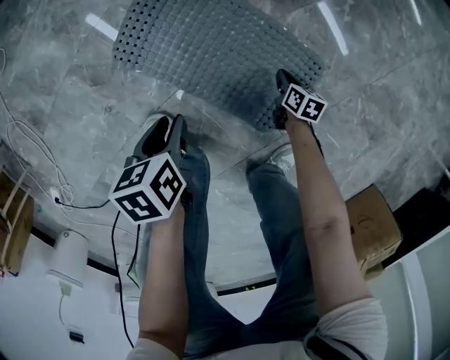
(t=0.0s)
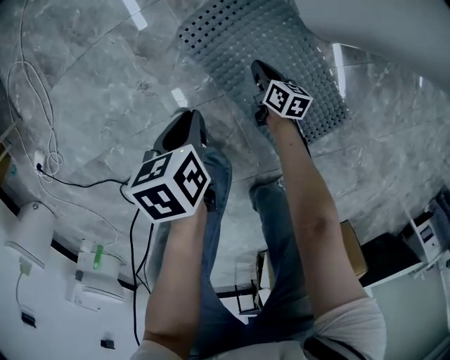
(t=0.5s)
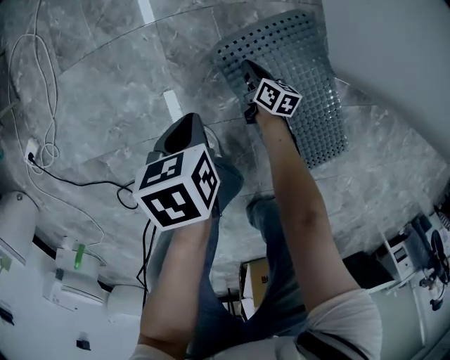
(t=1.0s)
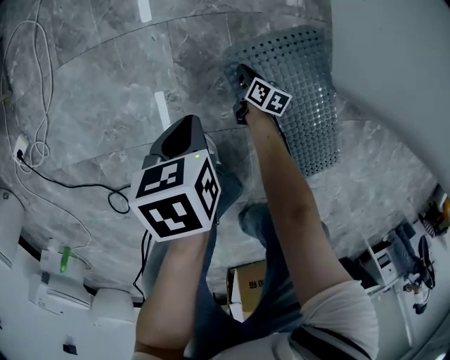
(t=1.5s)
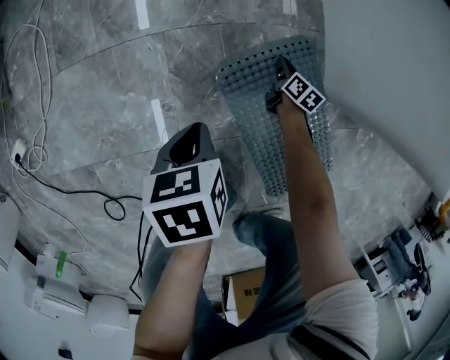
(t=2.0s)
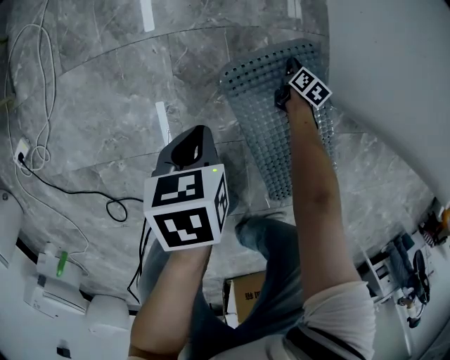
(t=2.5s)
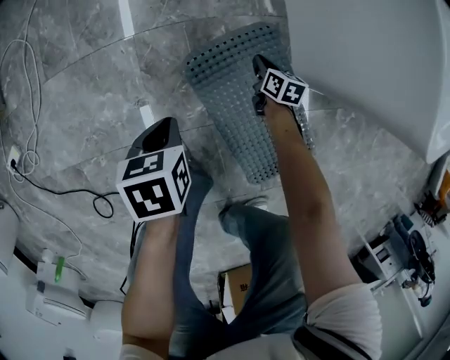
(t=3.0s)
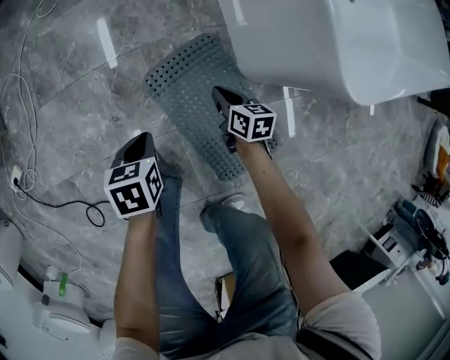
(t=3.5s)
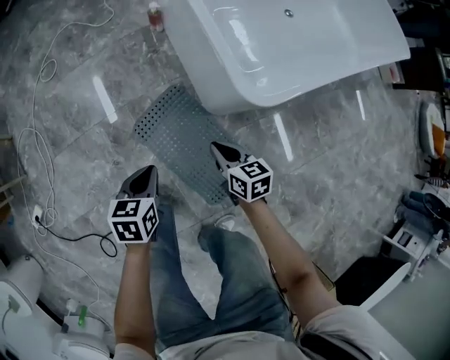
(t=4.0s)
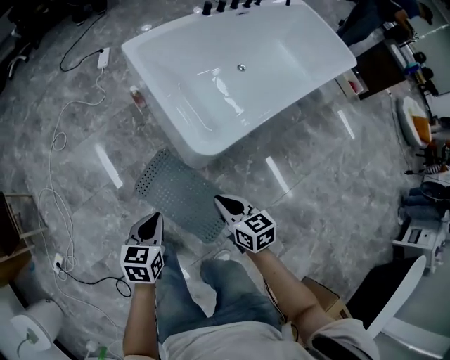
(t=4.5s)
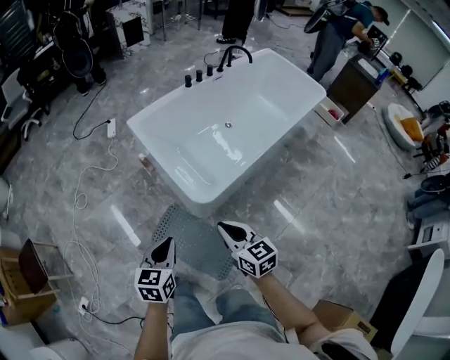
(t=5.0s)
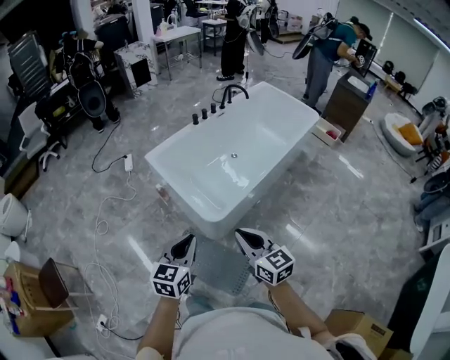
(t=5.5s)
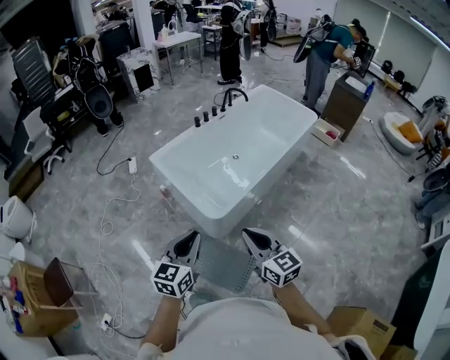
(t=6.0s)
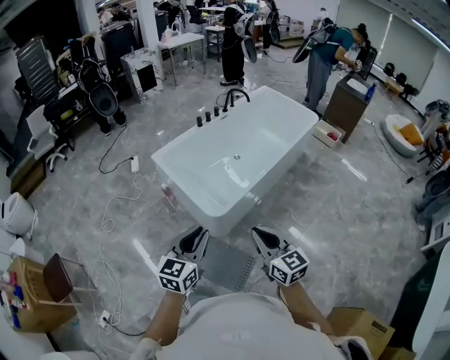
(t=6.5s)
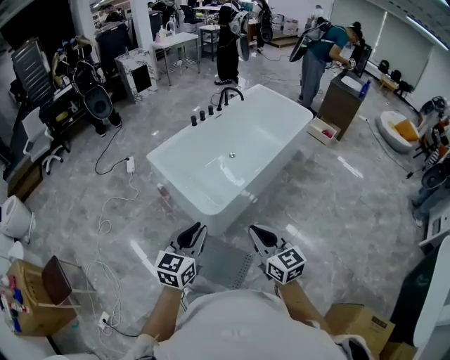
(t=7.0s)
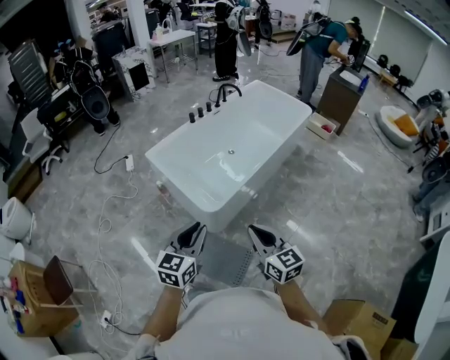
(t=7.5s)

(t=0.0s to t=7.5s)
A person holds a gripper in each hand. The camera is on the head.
t=0.0s - t=2.0s: The right gripper moves about 50 cm, and rotates about 20 degrees. Meanwhile the left gripper moves some 30 cm, swivels approximately 20 degrees, and closes.
t=2.0s - t=4.0s: The right gripper shifts about 50 cm upward, and changes its angle by about 20 degrees, while the left gripper heads upward and to the right, covering approximately 35 cm, and turns by roughly 30 degrees.
t=4.0s - t=5.5s: The grippers both shift upward by approximately 60 cm. The right gripper swivels some 30 degrees, while the left gripper points its fingers roughly 30 degrees further upward.
t=5.5s - t=7.5s: The left gripper heads backward, upward and to the right, covering some 10 cm. Meanwhile the right gripper travels backward and to the right by roughly 10 cm.

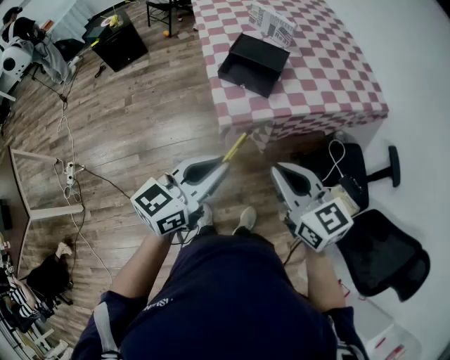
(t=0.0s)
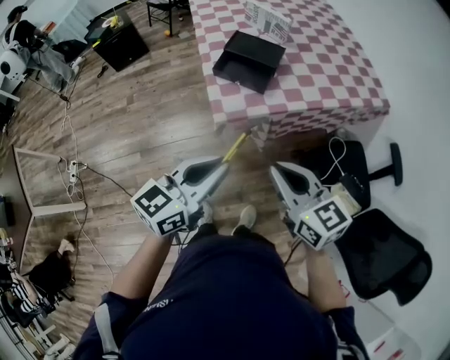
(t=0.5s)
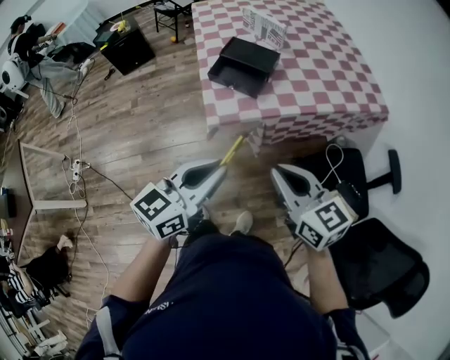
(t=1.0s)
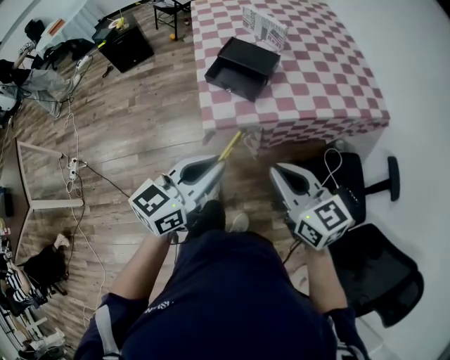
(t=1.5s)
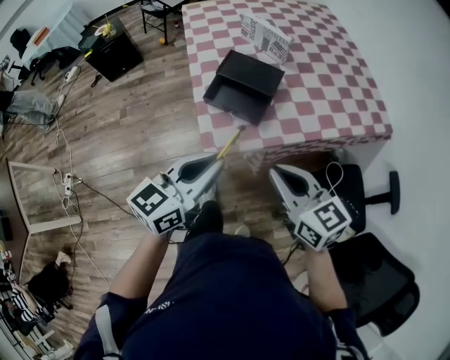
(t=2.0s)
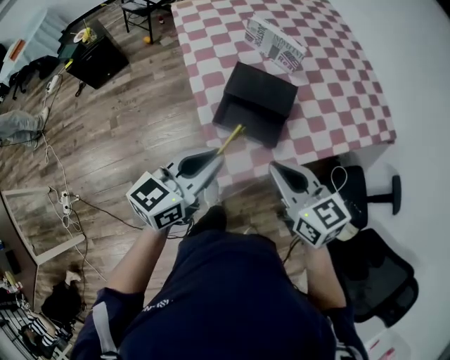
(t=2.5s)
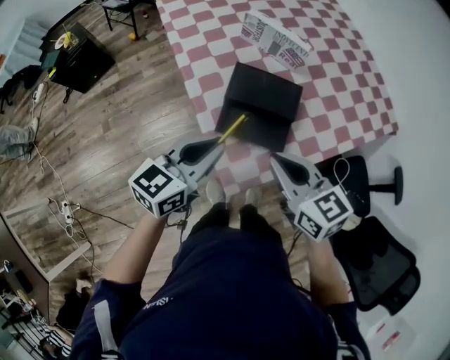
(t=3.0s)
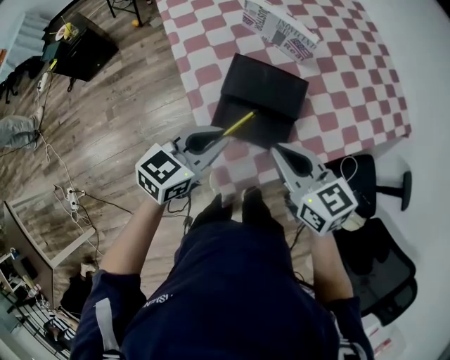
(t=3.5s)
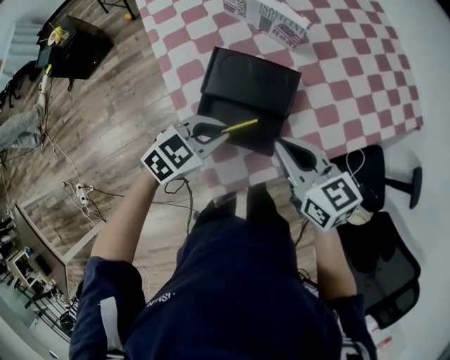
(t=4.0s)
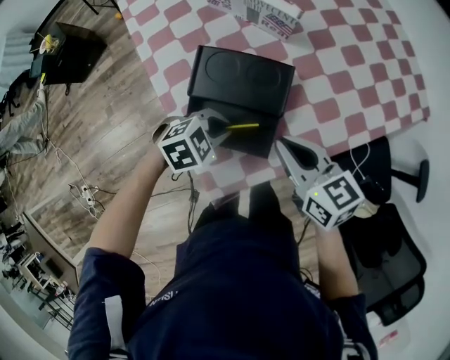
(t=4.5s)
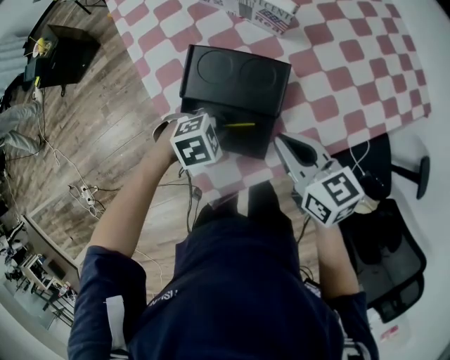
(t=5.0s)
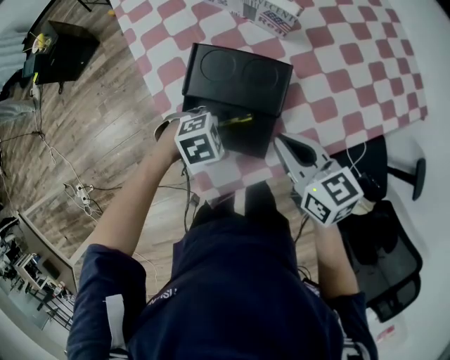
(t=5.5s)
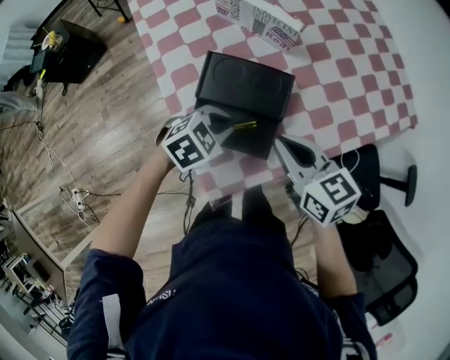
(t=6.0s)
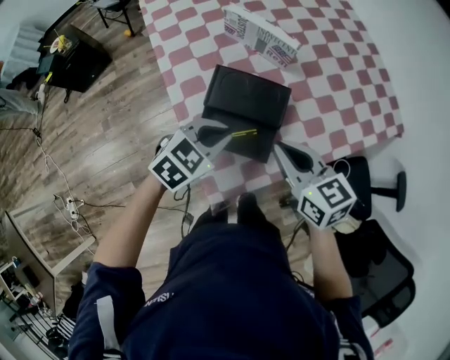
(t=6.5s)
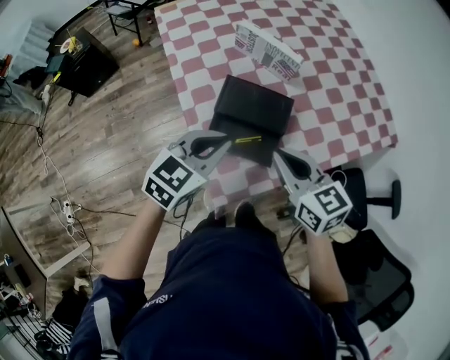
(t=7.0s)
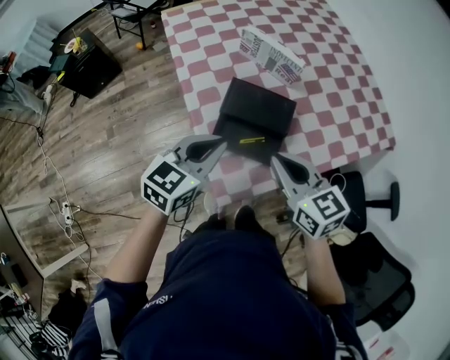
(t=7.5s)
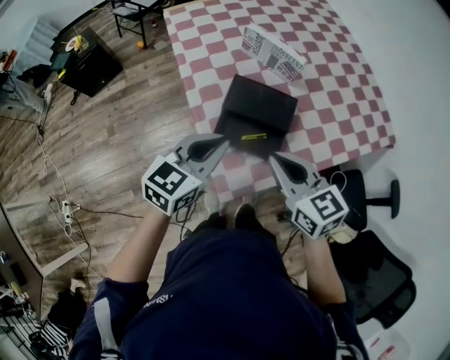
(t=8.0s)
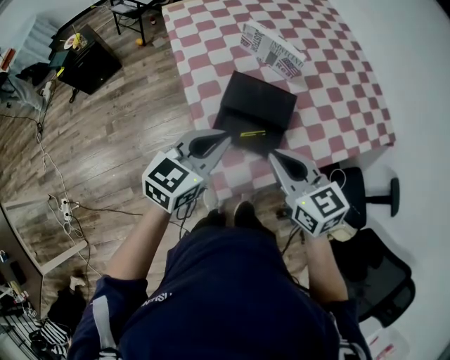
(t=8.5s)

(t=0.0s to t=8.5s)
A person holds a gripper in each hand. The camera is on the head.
t=0.0s - t=2.0s: The two grippers go approximately 15 cm forward.
t=2.0s - t=4.0s: The right gripper is displaced forward by some 25 cm, while the left gripper is displaced forward and downward by some 35 cm, and tilts its fingers some 30 degrees downward.
t=4.0s - t=6.5s: The left gripper goes downward and returns, about 10 cm each way.
t=6.5s - t=8.5s: The right gripper travels backward and to the left by some 10 cm. Meanwhile the left gripper goes roughly 10 cm upward, to the left and backward, and turns by some 30 degrees.

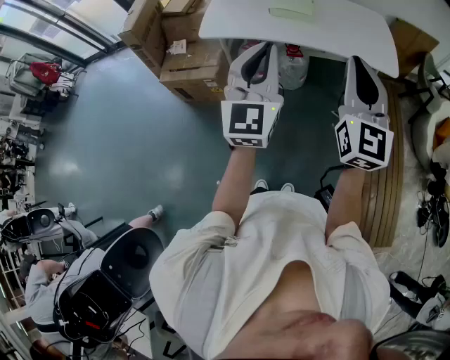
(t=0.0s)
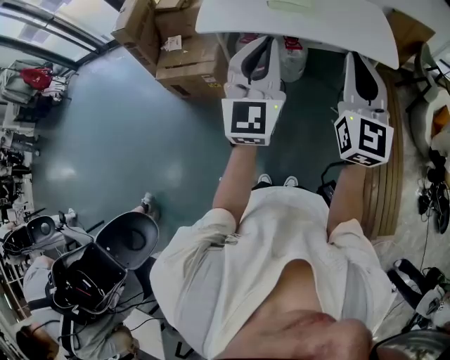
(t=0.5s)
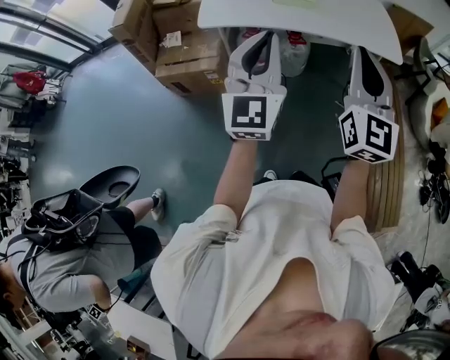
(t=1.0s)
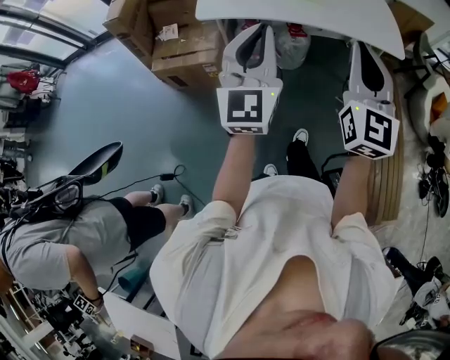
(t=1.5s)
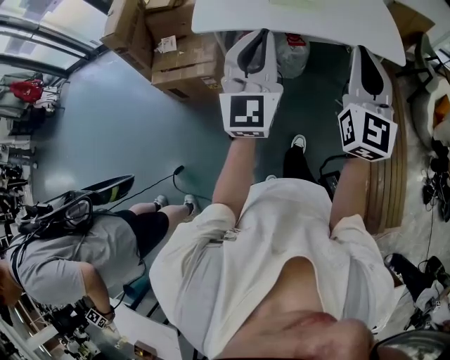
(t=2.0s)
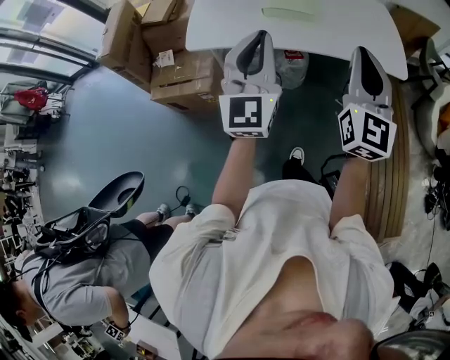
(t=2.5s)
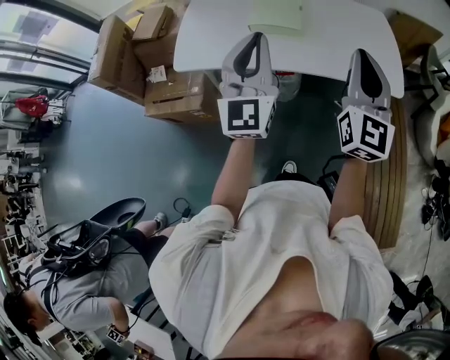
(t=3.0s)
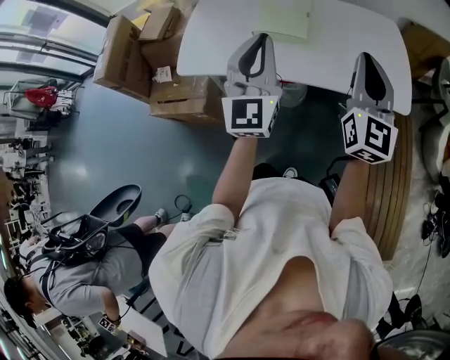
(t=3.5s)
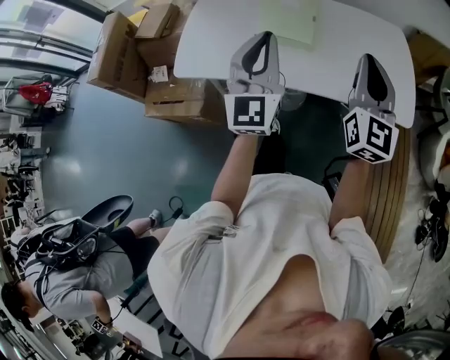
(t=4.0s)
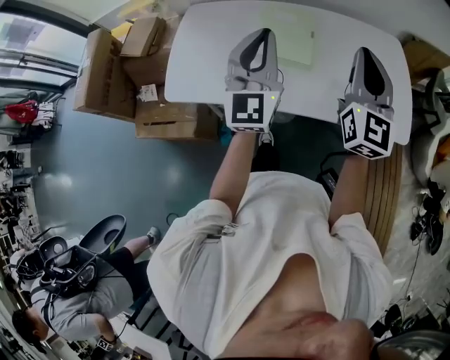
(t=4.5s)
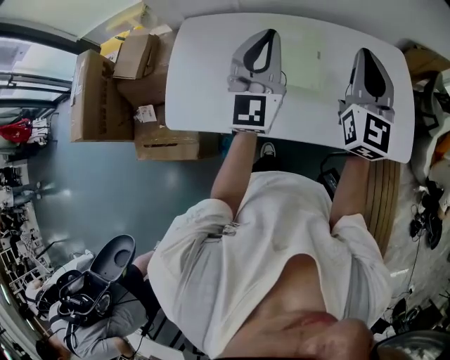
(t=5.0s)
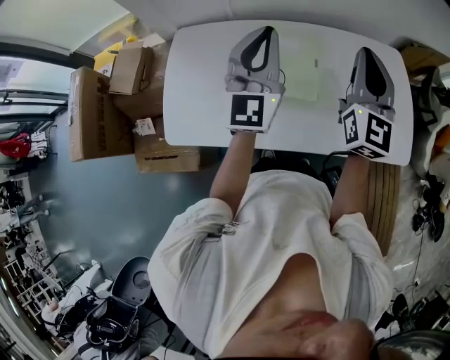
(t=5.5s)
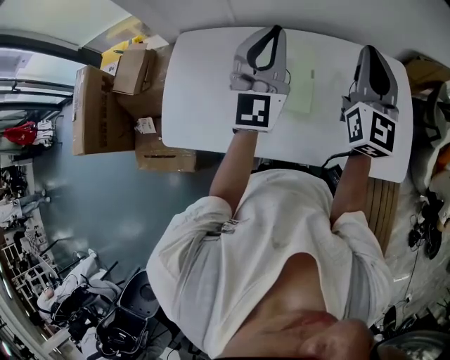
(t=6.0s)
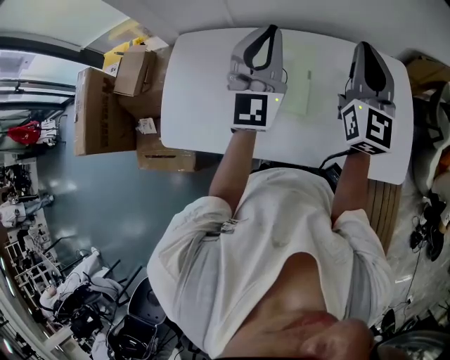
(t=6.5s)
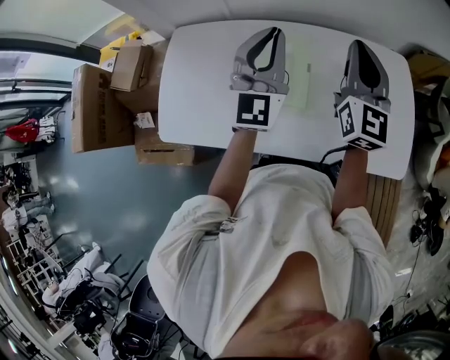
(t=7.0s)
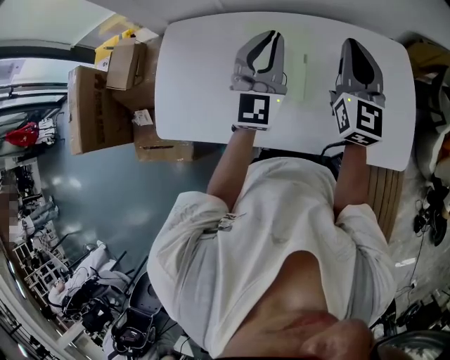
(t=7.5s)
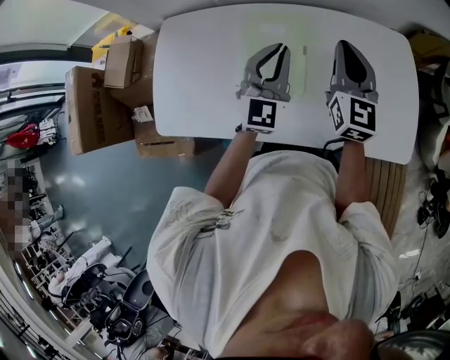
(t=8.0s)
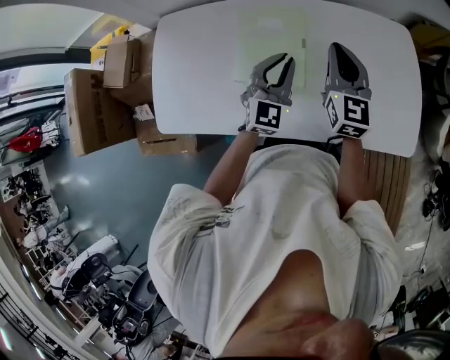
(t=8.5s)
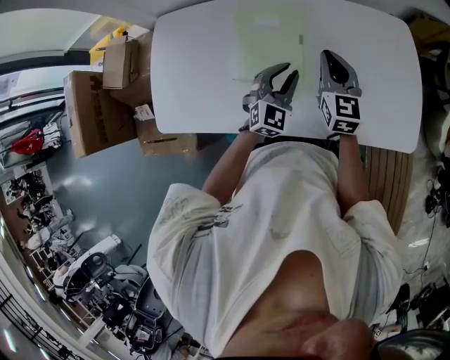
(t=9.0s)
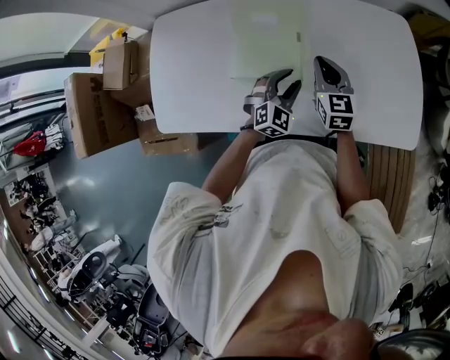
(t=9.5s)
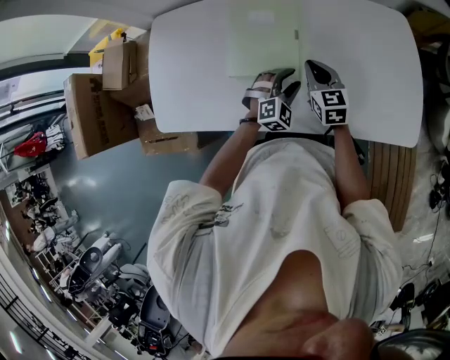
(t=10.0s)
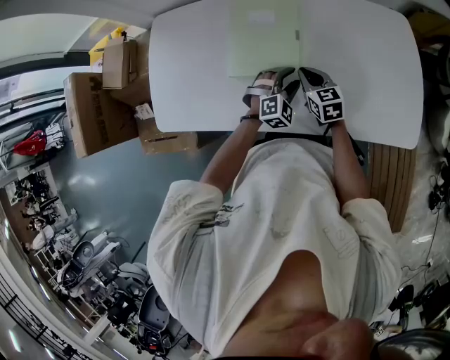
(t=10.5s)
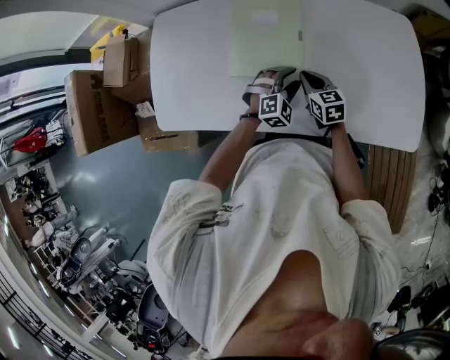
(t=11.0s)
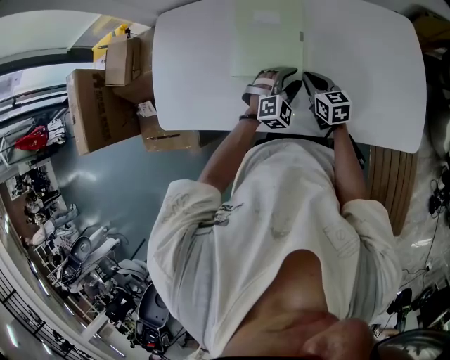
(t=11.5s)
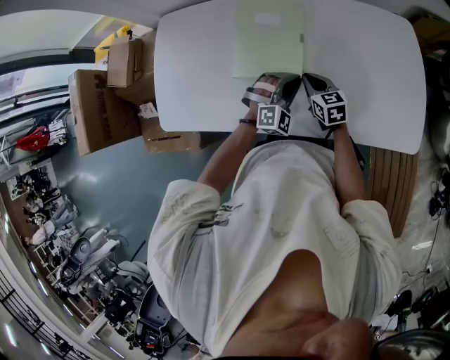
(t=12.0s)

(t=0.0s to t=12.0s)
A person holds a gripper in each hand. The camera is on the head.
t=0.0s - t=2.0s: Both grippers travel together to the left and forward, some 10 cm.
t=2.0s - t=4.0s: The grippers both shift forward by some 35 cm.
t=4.0s - t=6.0s: The grippers both shift forward by approximately 30 cm.
t=6.0s - t=8.0s: The grippers both shift downward by some 15 cm.
t=8.0s - t=10.0s: The grippers both shift downward by about 25 cm. The left gripper angles its fingers downward, by approximately 40 degrees, and opens its fingers. The right gripper changes its angle by roughly 30 degrees.
t=10.0s - t=12.0s: The left gripper closes up. The right gripper heads downward, covering about 5 cm.
